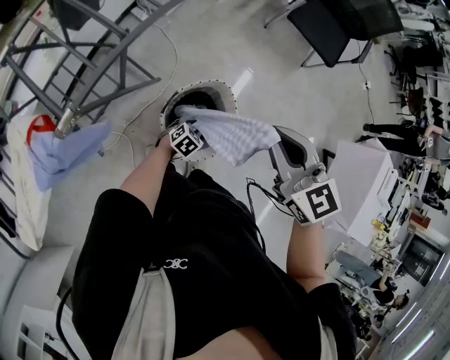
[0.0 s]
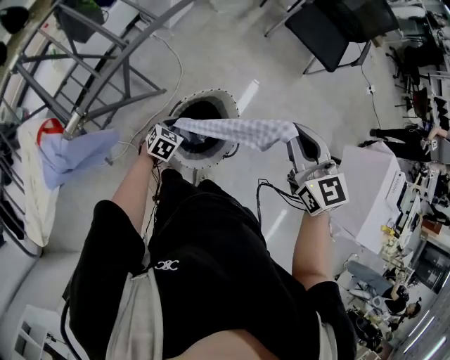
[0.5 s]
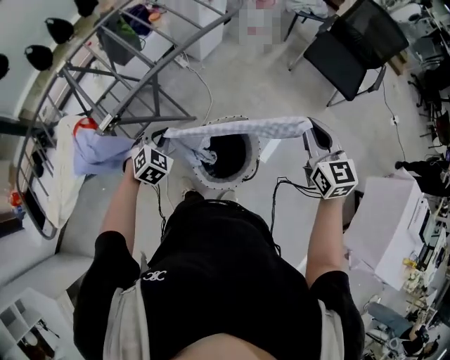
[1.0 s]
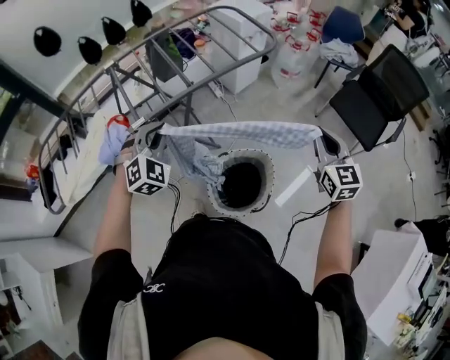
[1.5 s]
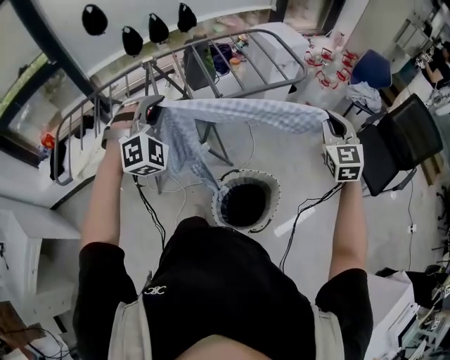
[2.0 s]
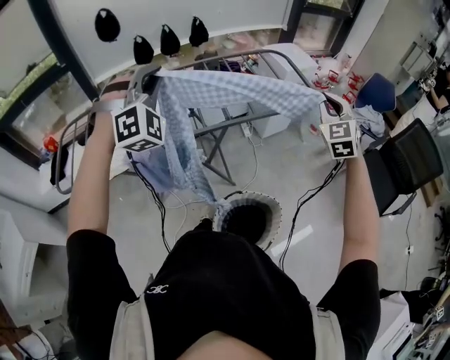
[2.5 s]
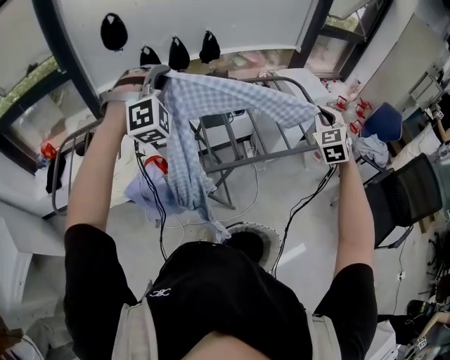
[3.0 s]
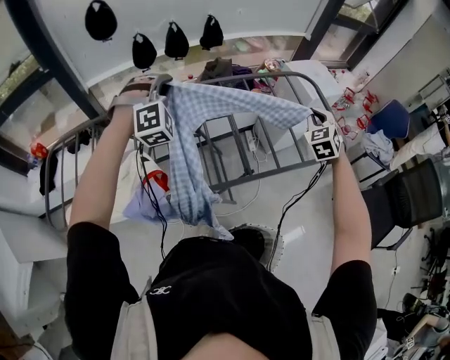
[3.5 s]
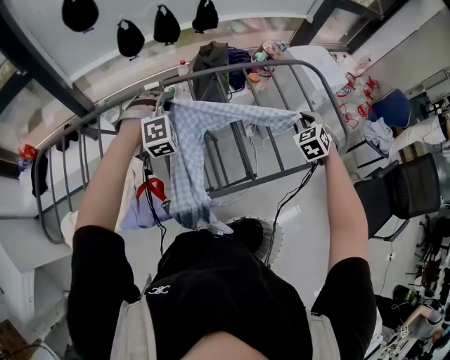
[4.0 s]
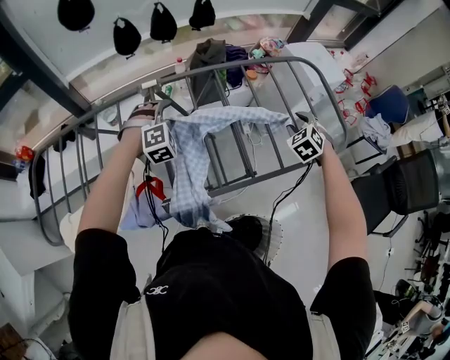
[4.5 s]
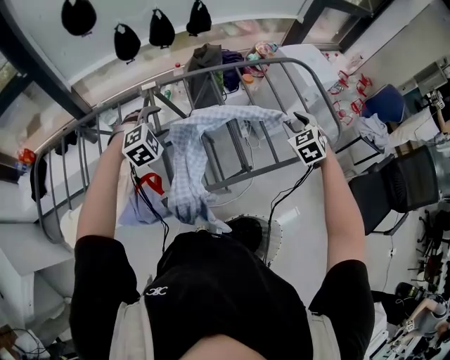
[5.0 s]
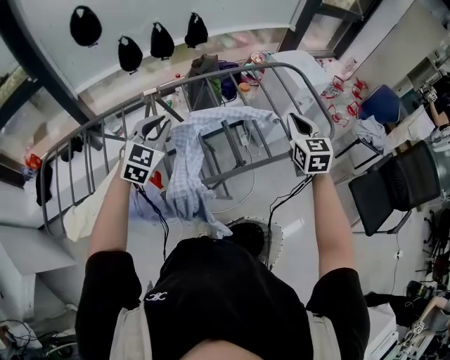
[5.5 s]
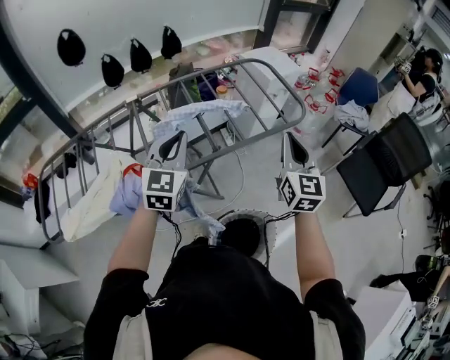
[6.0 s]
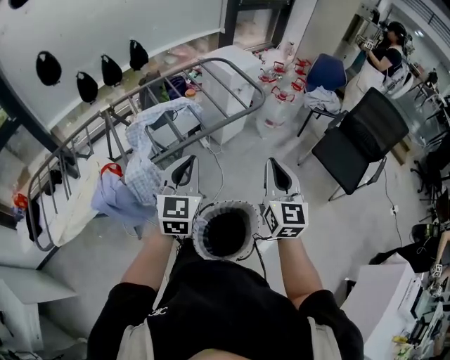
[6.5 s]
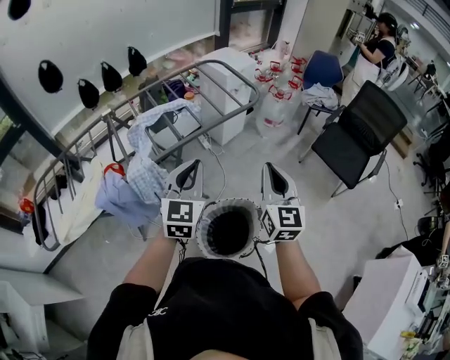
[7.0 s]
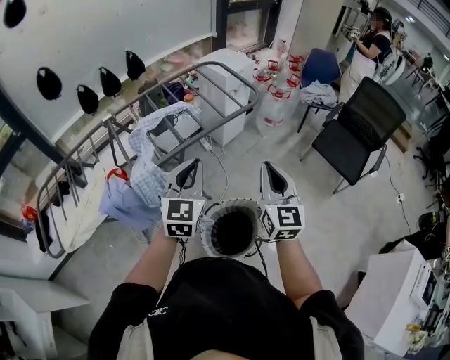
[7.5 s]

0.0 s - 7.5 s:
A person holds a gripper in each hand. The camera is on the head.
0.0 s - 2.0 s: The left gripper goes roughly 50 cm upward, angles its fingers upward, by about 40 degrees, and closes, while the right gripper ends up roughly 20 cm from where it was, and changes its angle by approximately 30 degrees.
2.0 s - 4.0 s: Both grippers are carried forward, about 40 cm. The left gripper moves downward, about 15 cm, while the right gripper swivels about 40 degrees.
4.0 s - 5.5 s: The grippers both shift backward and upward by some 15 cm. The right gripper swivels approximately 40 degrees, and opens and closes again. The left gripper rotates around the line of its fingers by roughly 50 degrees, counterclockwise from behind, and opens, then closes once more.
5.5 s - 7.5 s: Both grippers are carried backward and to the right, approximately 40 cm. The right gripper changes its angle by approximately 30 degrees.

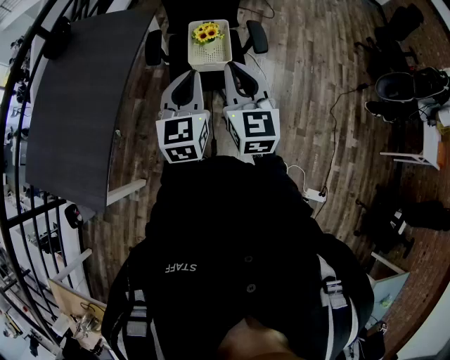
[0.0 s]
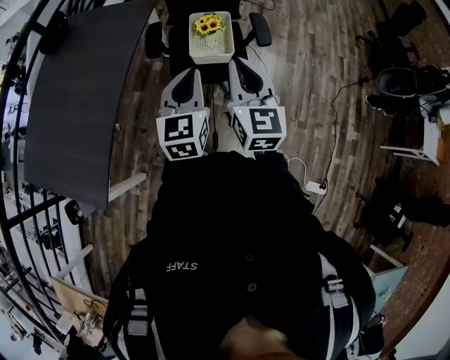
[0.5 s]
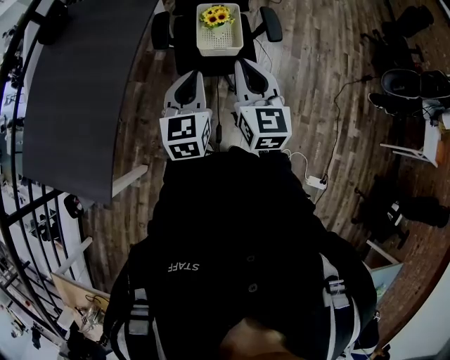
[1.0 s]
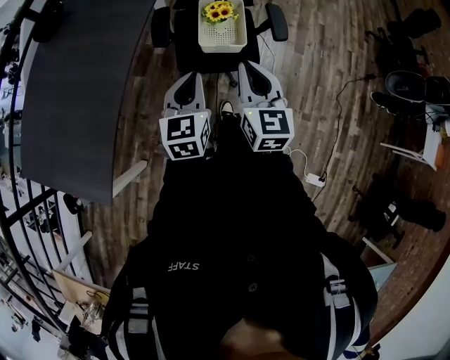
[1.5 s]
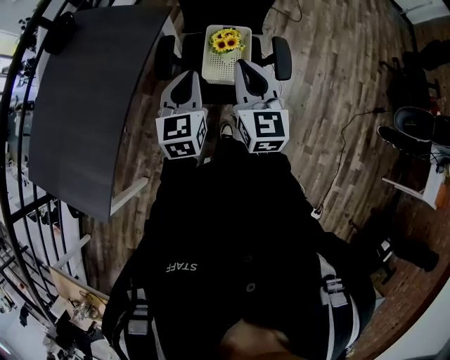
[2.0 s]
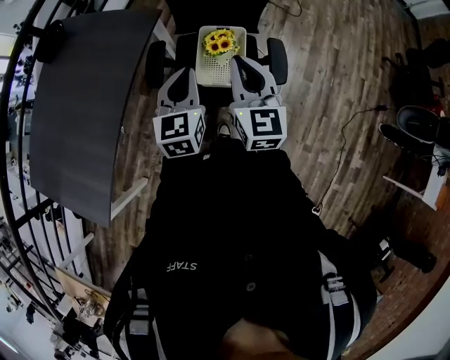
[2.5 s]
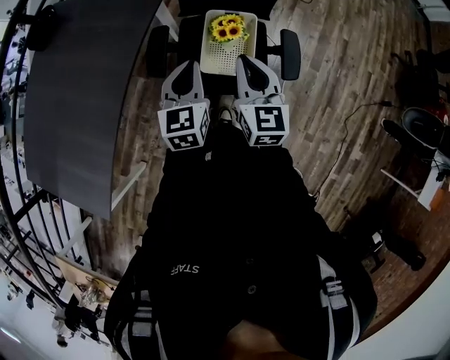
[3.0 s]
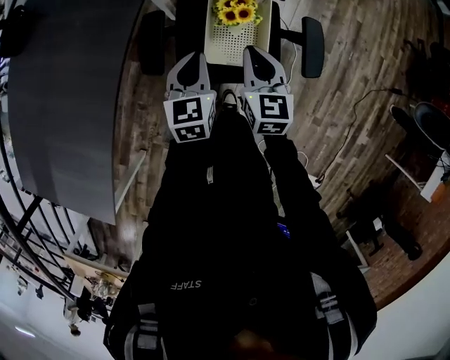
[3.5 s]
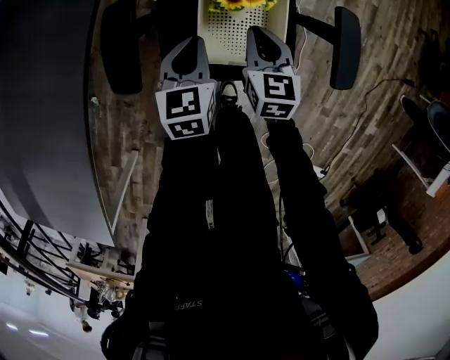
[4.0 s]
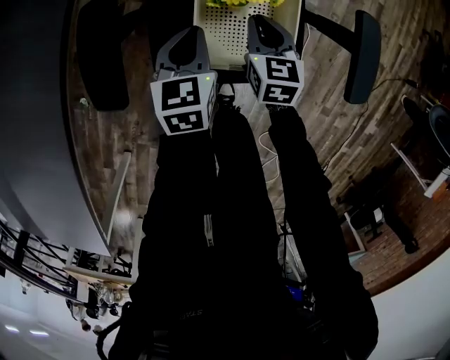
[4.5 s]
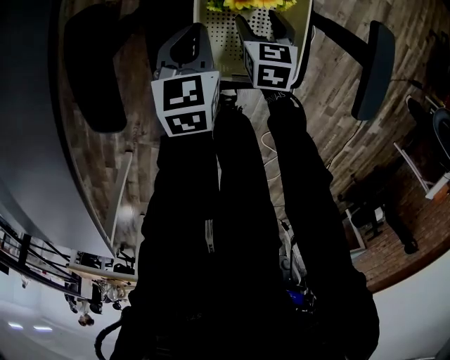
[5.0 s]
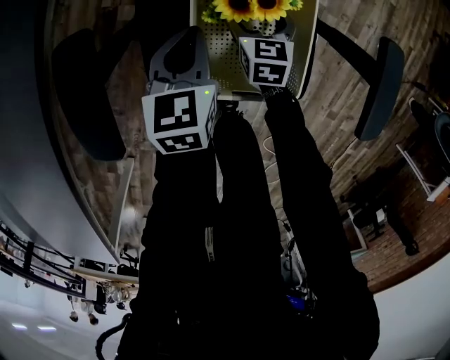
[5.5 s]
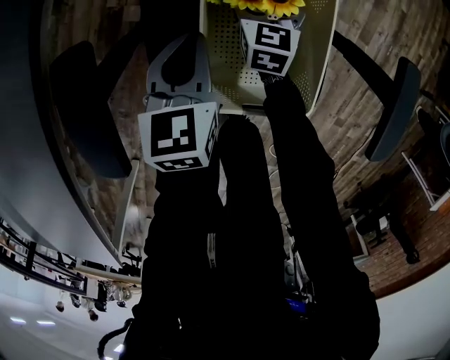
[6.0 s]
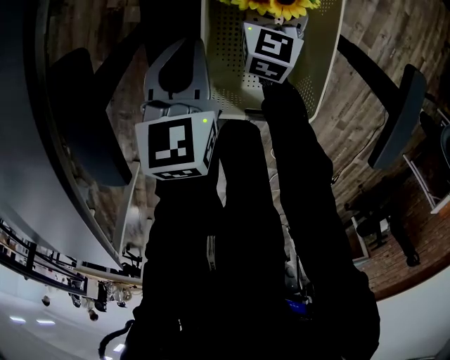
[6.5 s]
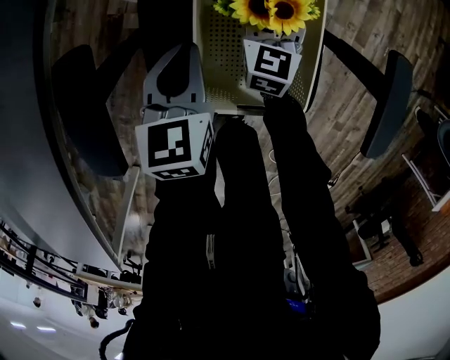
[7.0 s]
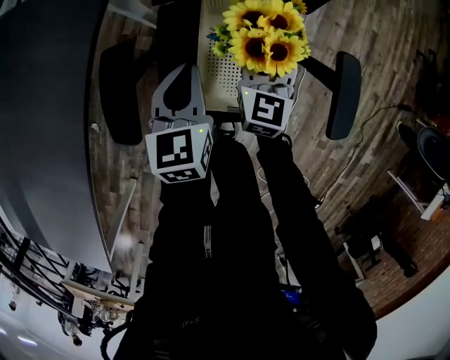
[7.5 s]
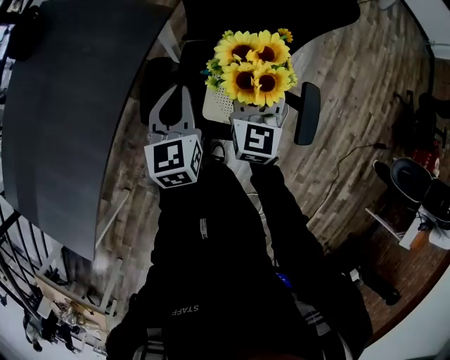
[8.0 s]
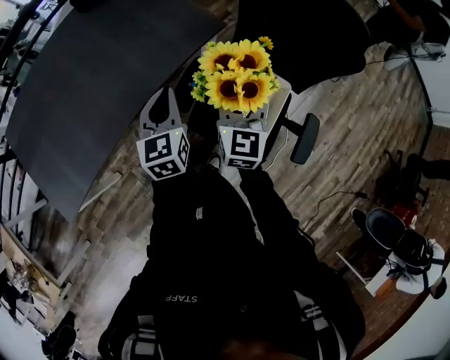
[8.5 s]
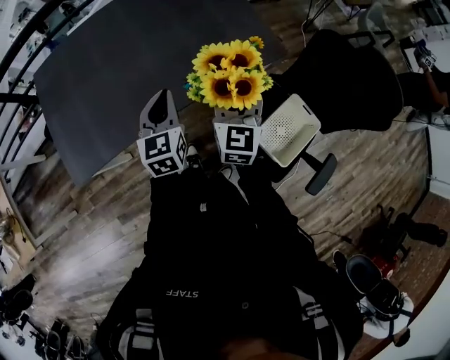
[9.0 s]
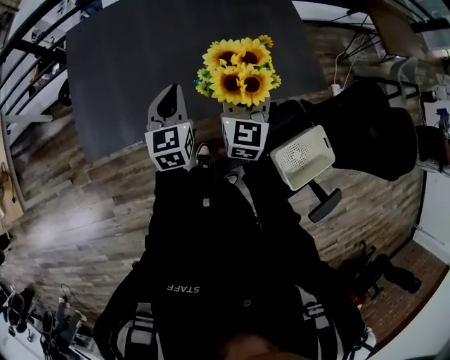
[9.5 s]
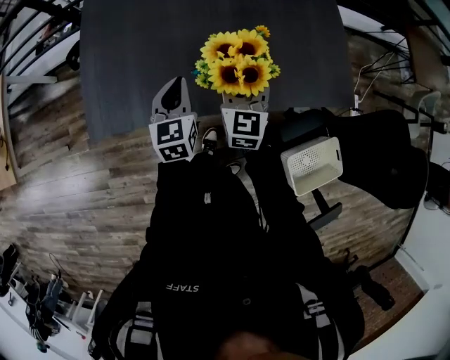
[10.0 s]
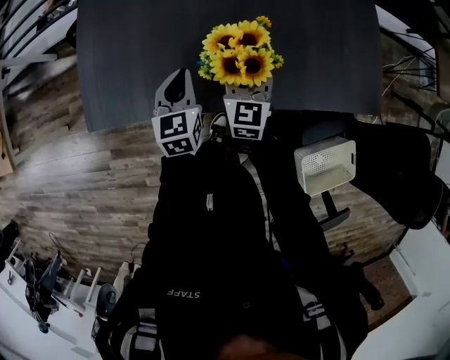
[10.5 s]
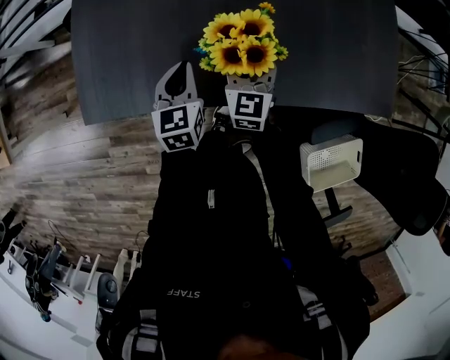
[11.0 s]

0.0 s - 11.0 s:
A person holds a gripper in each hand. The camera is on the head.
0.0 s - 2.0 s: Both grippers travel together forward, some 20 cm.
2.0 s - 3.5 s: The two grippers go approximately 30 cm downward and forward.
3.5 s - 5.5 s: The right gripper travels downward by roughly 40 cm, and opens. Meanwhile the left gripper travels downward and forward by some 35 cm.
5.5 s - 7.5 s: The right gripper moves upward, approximately 20 cm, swivels about 30 degrees, and closes up. The left gripper travels upward by roughly 15 cm.
7.5 s - 9.0 s: The grippers both shift upward by approximately 20 cm.
9.0 s - 11.0 s: The left gripper heads downward, covering approximately 15 cm. The right gripper goes about 20 cm downward and to the left.

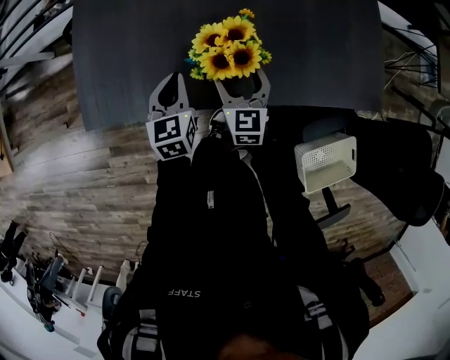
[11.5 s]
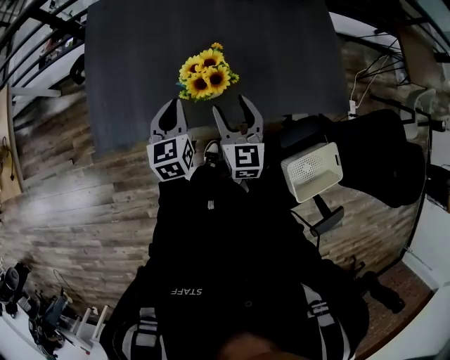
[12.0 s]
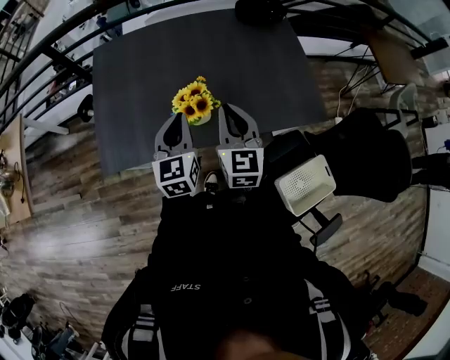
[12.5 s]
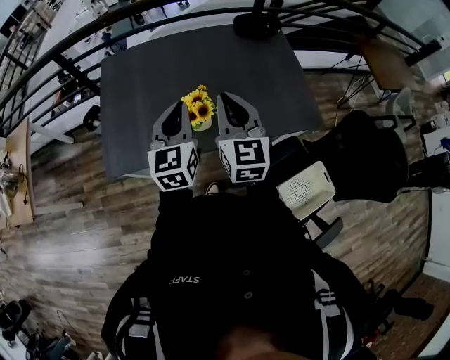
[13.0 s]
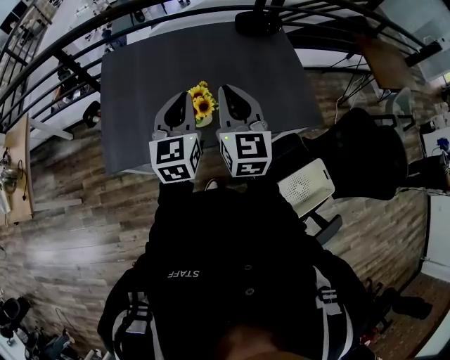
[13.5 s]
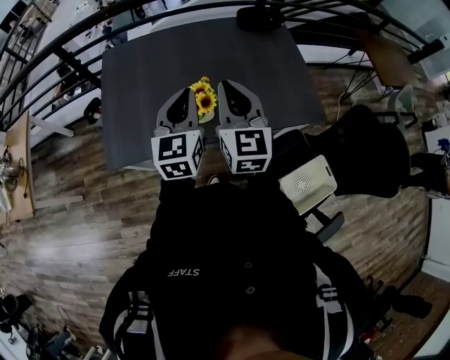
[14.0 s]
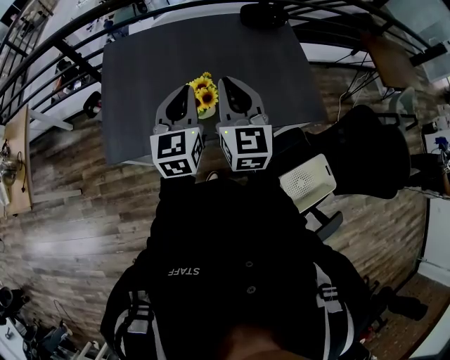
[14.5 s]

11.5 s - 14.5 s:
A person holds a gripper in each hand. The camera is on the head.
11.5 s - 13.0 s: The grippers both shift upward by some 40 cm. The left gripper swivels roughly 30 degrees, while the right gripper rotates about 20 degrees, and closes.
13.0 s - 14.5 s: The grippers move only a little.

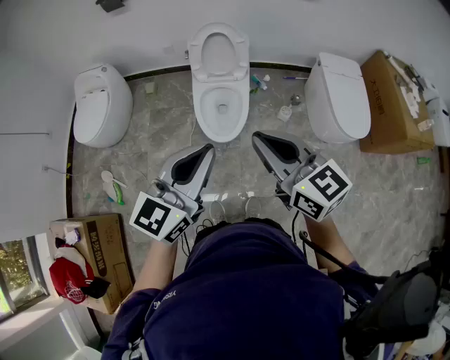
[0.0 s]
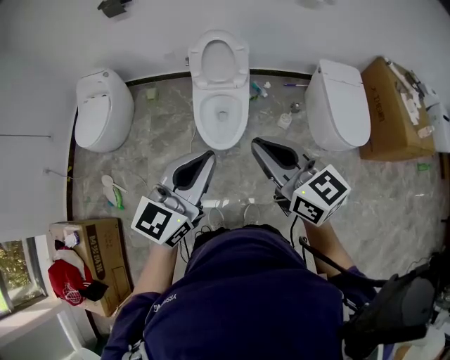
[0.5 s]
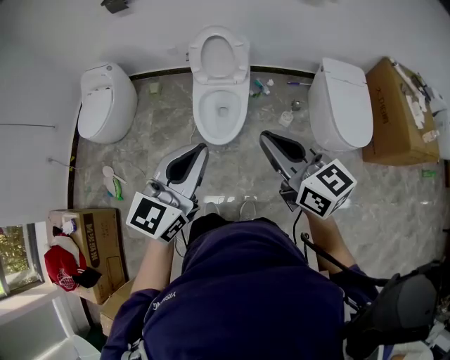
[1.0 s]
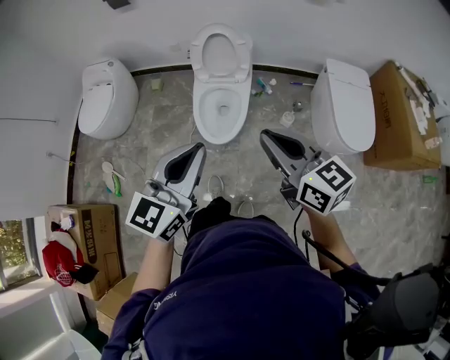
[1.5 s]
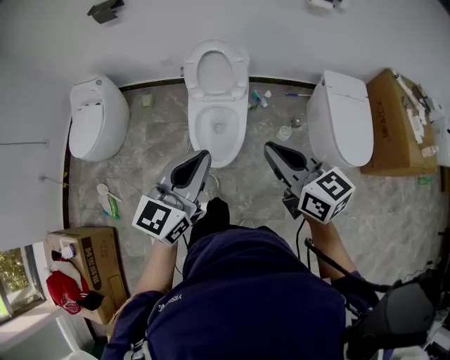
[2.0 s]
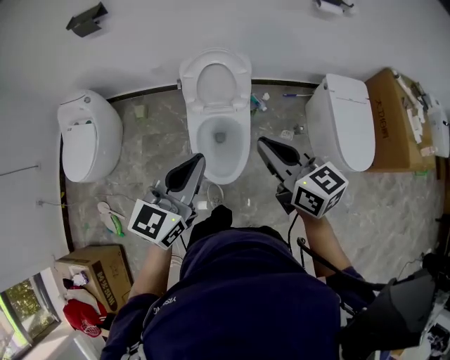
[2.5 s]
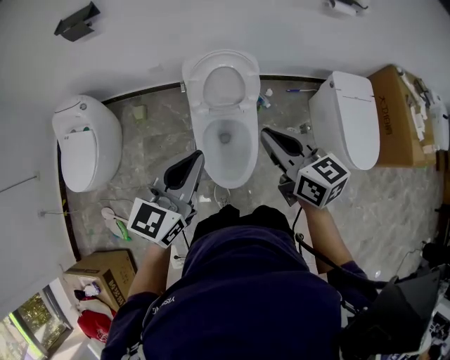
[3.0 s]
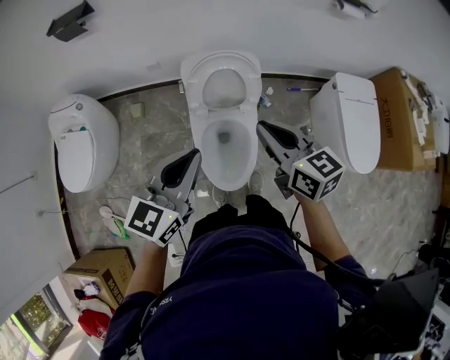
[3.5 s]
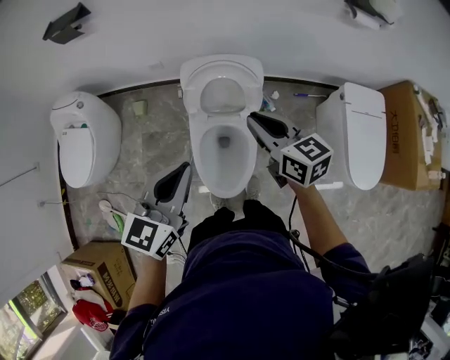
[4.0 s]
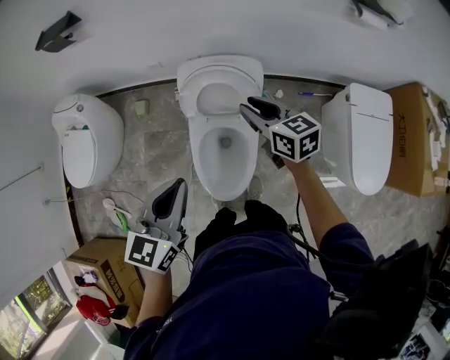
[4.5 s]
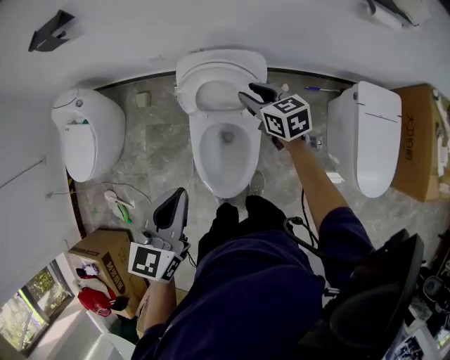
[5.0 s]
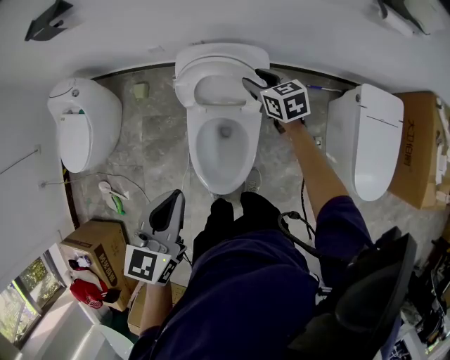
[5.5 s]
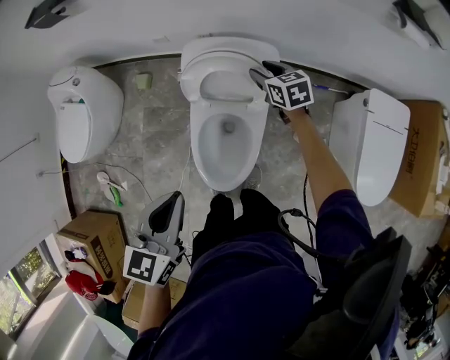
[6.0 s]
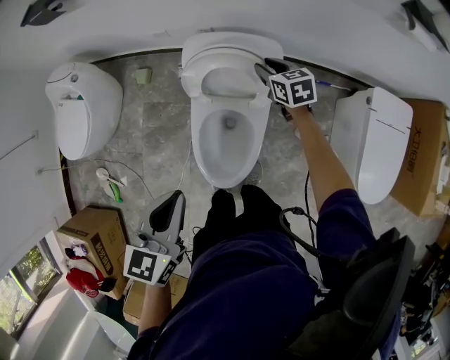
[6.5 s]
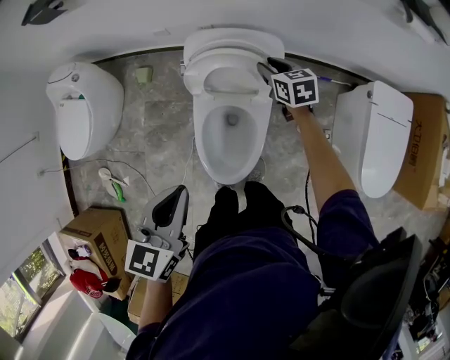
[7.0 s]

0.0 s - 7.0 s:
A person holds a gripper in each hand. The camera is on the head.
0.0 s - 2.0 s: The right gripper shifts roughly 15 cm forward, to the right and downward. The left gripper moves forward, roughly 15 cm.
2.0 s - 3.5 s: The right gripper heads forward, covering some 30 cm. The left gripper moves forward and to the left, about 30 cm.
3.5 s - 5.0 s: The right gripper goes about 30 cm forward and downward, and opens, while the left gripper travels to the right by some 5 cm, and rotates roughly 20 degrees.
5.0 s - 7.0 s: The right gripper travels downward and forward by approximately 10 cm.
